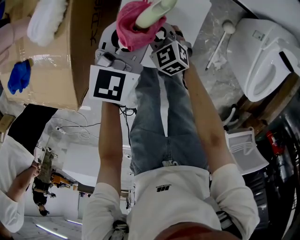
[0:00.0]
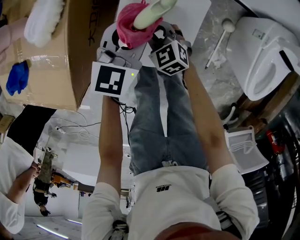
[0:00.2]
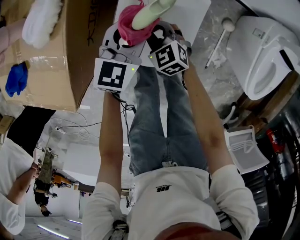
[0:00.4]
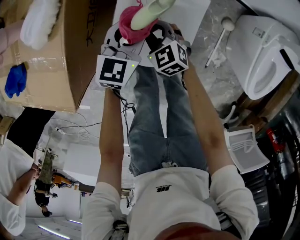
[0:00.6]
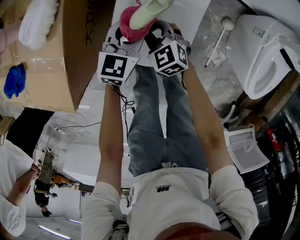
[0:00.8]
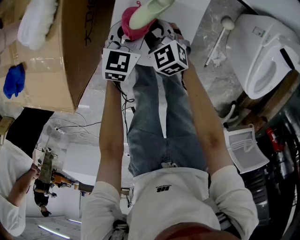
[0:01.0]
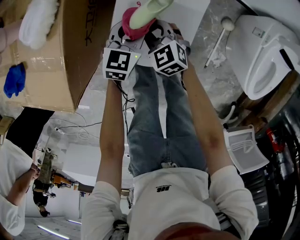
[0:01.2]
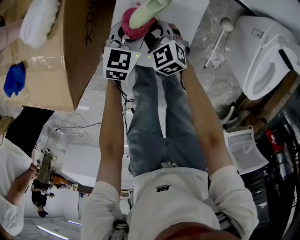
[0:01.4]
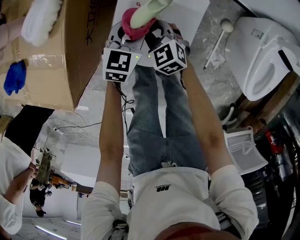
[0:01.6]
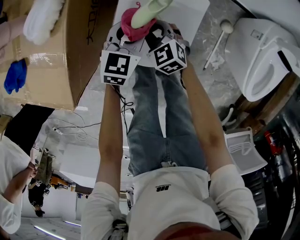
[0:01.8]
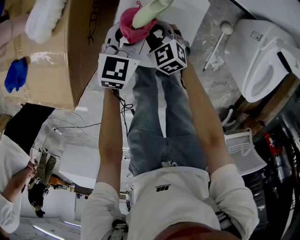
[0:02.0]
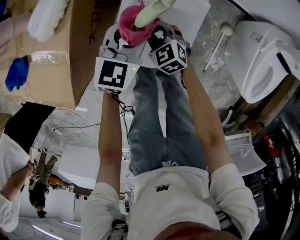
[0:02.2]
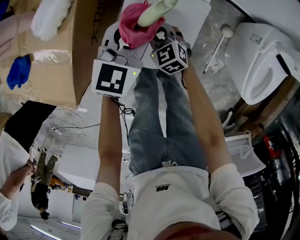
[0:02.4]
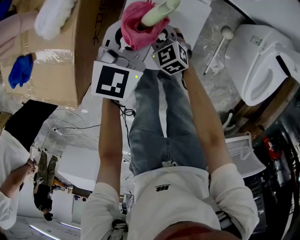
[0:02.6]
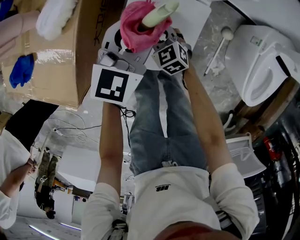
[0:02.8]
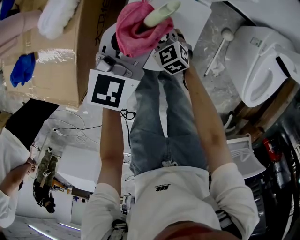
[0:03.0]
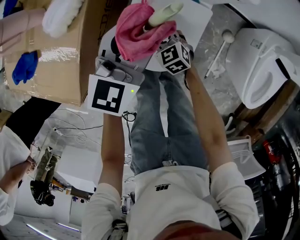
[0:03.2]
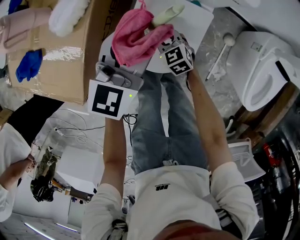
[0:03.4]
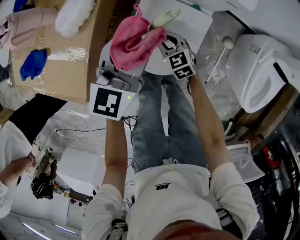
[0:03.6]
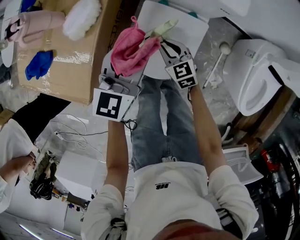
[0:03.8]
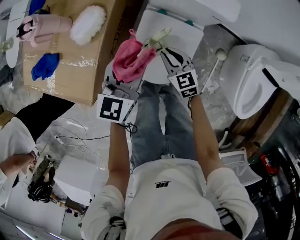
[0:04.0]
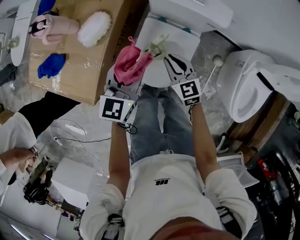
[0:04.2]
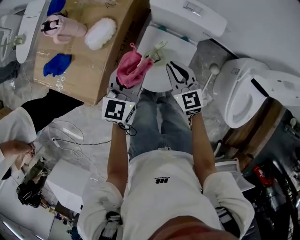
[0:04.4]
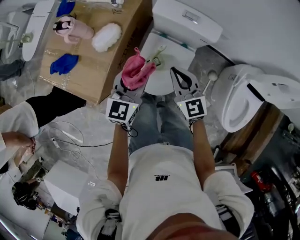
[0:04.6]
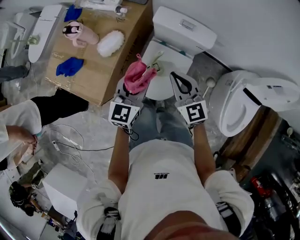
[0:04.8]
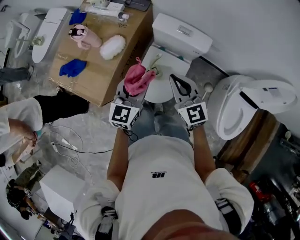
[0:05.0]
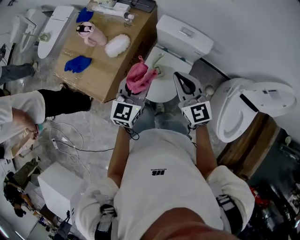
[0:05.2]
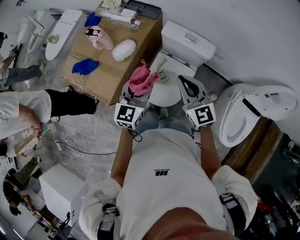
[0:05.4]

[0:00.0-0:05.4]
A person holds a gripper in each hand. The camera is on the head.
0:00.0 to 0:01.4: The left gripper shifts about 15 cm downward.
0:01.4 to 0:02.8: The left gripper heads upward, covering roughly 15 cm.
0:02.8 to 0:04.0: The left gripper heads upward and to the left, covering approximately 10 cm. The right gripper is displaced upward by approximately 15 cm.
0:04.0 to 0:05.4: The right gripper is displaced upward by approximately 35 cm, and changes its angle by some 30 degrees. Meanwhile the left gripper shifts approximately 20 cm upward.

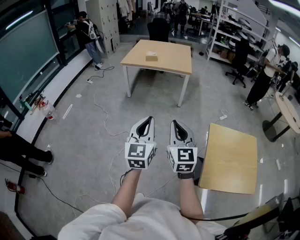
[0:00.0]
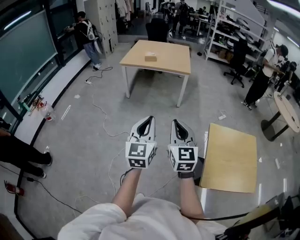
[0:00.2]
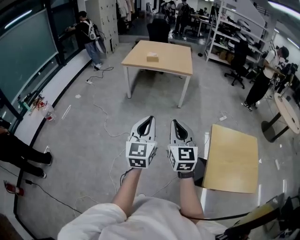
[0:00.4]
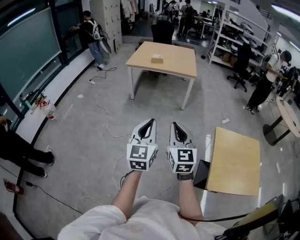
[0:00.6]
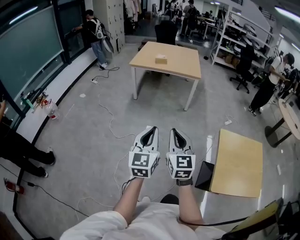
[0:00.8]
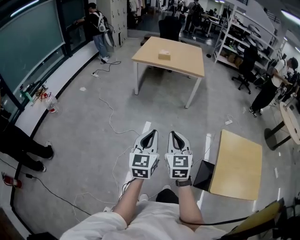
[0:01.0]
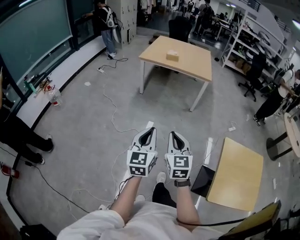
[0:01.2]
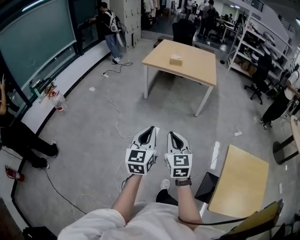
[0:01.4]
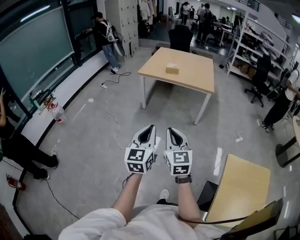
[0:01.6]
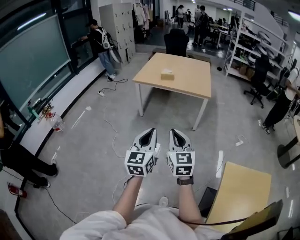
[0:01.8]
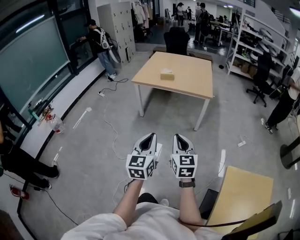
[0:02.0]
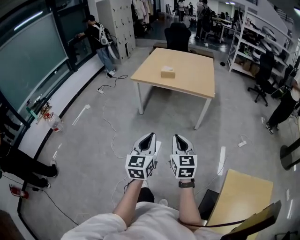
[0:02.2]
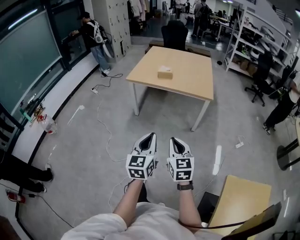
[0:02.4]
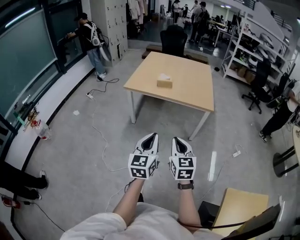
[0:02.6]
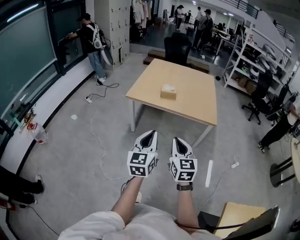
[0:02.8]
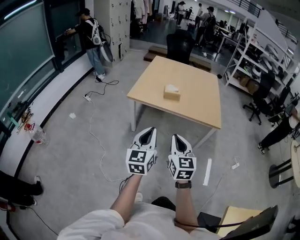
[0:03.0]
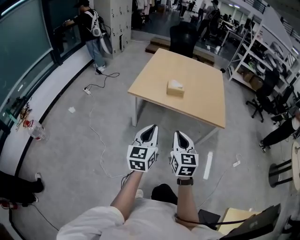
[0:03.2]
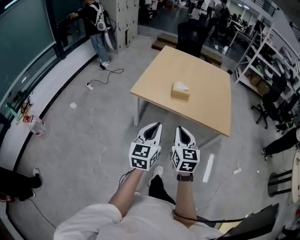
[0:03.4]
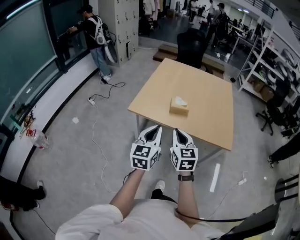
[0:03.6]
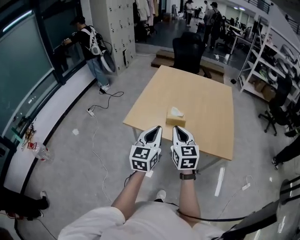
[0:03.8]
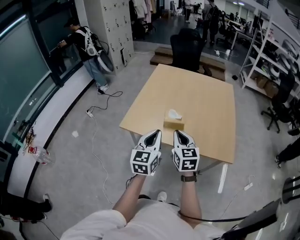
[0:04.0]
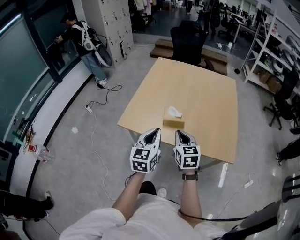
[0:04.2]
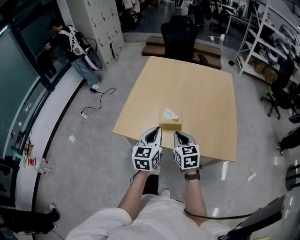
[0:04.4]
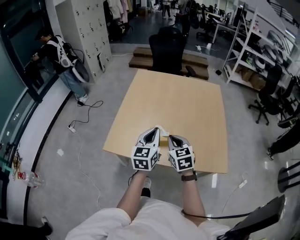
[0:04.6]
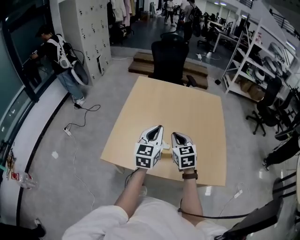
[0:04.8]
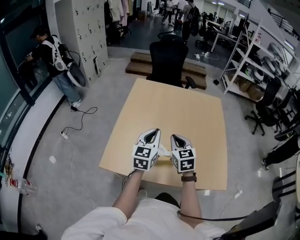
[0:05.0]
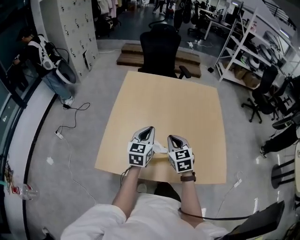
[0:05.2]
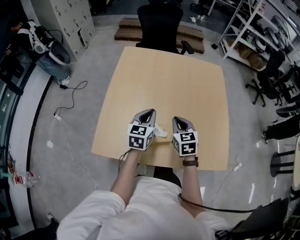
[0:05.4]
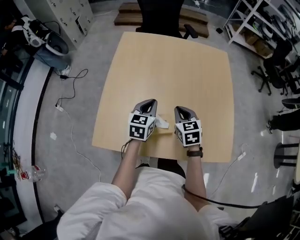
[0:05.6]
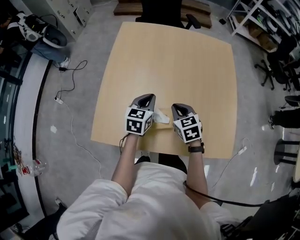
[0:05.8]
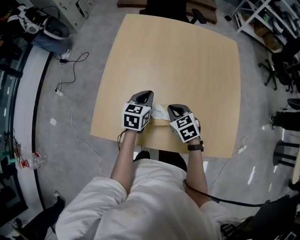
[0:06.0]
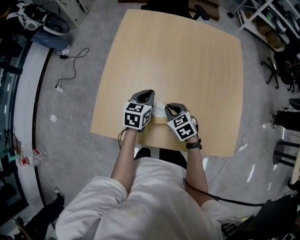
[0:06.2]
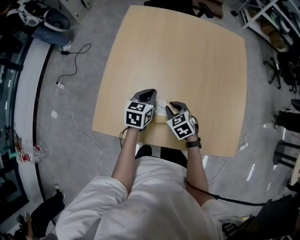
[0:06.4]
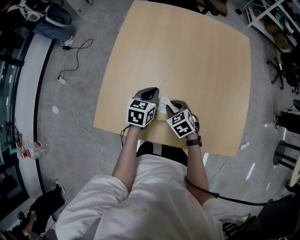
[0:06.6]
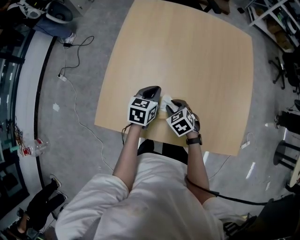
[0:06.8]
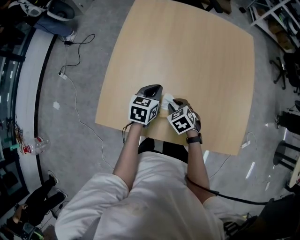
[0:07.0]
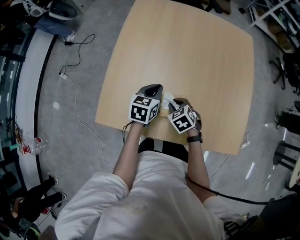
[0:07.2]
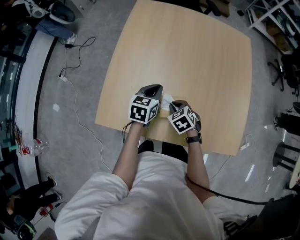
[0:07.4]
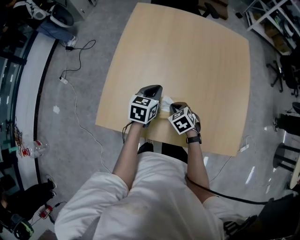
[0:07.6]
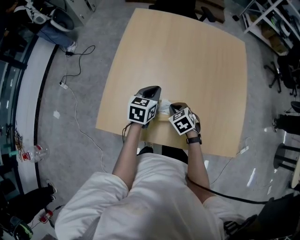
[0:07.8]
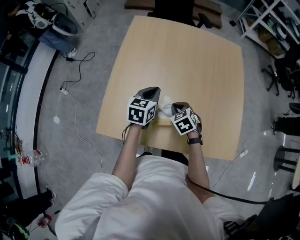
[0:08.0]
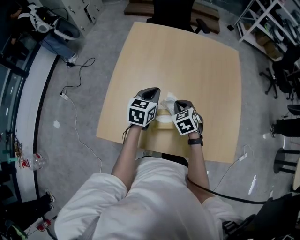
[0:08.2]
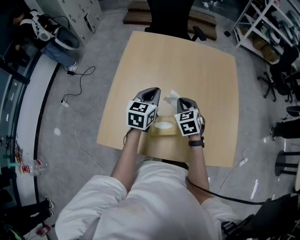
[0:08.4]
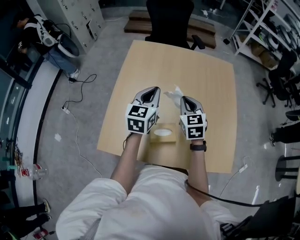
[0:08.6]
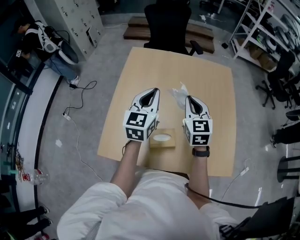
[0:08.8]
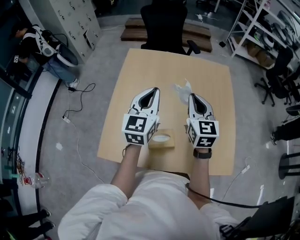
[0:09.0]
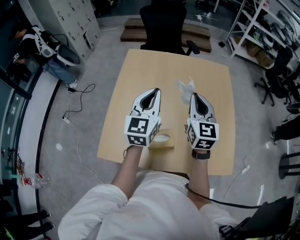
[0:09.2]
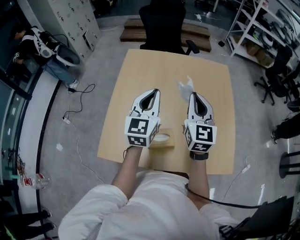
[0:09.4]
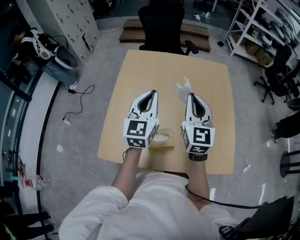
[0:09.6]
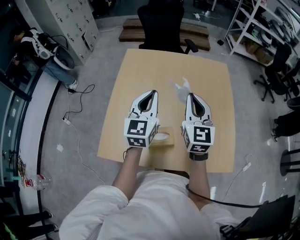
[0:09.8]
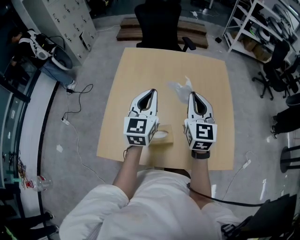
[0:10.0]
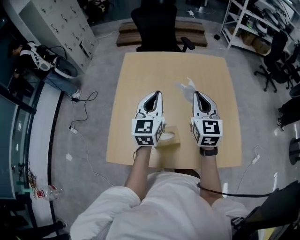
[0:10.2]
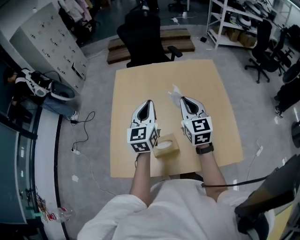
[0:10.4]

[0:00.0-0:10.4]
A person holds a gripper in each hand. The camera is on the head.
0:00.0 to 0:01.4: The grippers both shift to the left, forward and downward by some 20 cm.
0:01.4 to 0:03.0: The two grippers travel together, forward, approximately 60 cm.
0:03.0 to 0:04.4: The pair of grippers is taken forward, some 50 cm.
0:04.4 to 0:06.0: The two grippers go some 35 cm forward and downward. The right gripper changes its angle by roughly 20 degrees; the left gripper rotates some 20 degrees.
0:06.0 to 0:07.4: The right gripper shifts some 10 cm downward.
0:07.4 to 0:09.0: Both grippers move upward, approximately 30 cm. The left gripper rotates about 40 degrees. Meanwhile the right gripper points its fingers roughly 50 degrees further upward.
0:09.0 to 0:10.4: The grippers stay close to where they were, moving slightly.

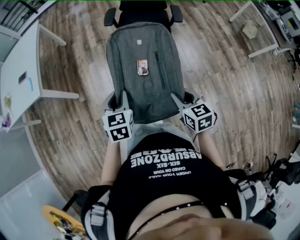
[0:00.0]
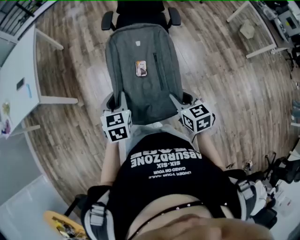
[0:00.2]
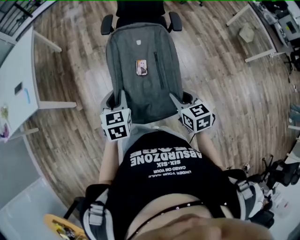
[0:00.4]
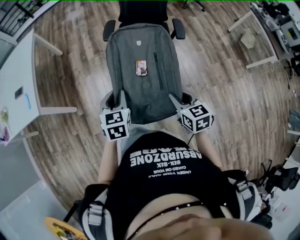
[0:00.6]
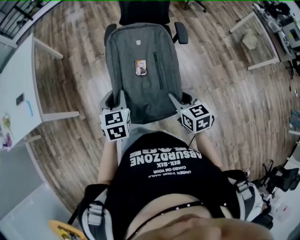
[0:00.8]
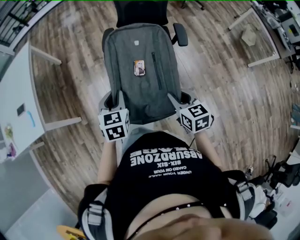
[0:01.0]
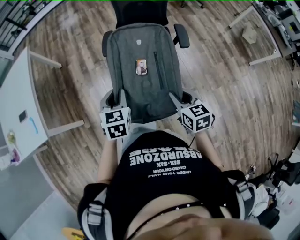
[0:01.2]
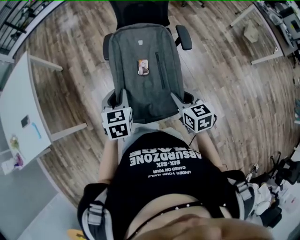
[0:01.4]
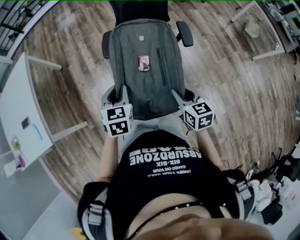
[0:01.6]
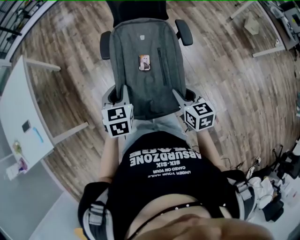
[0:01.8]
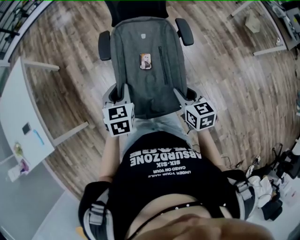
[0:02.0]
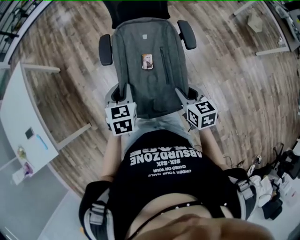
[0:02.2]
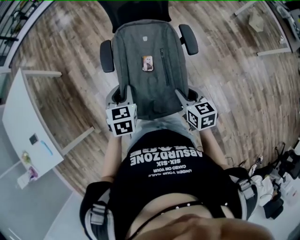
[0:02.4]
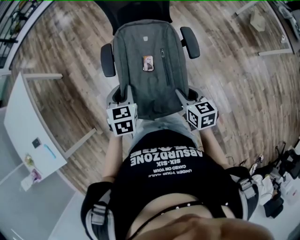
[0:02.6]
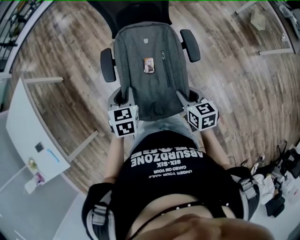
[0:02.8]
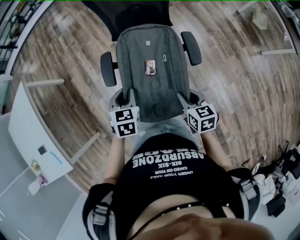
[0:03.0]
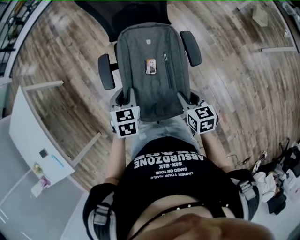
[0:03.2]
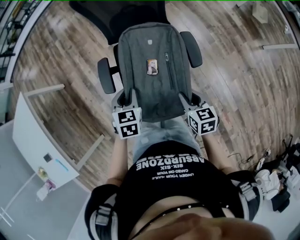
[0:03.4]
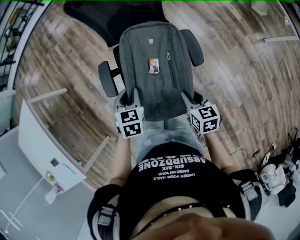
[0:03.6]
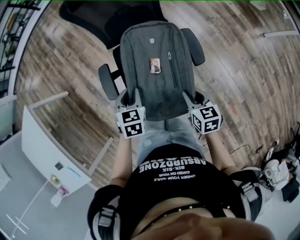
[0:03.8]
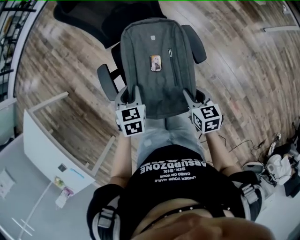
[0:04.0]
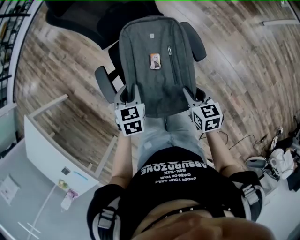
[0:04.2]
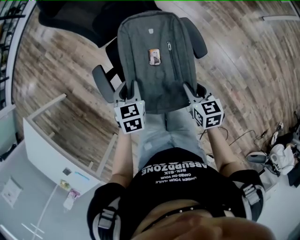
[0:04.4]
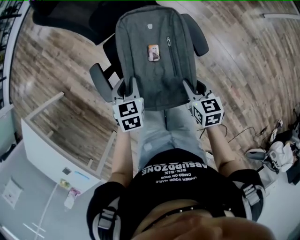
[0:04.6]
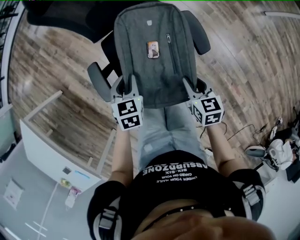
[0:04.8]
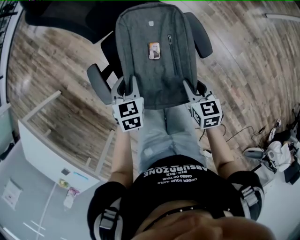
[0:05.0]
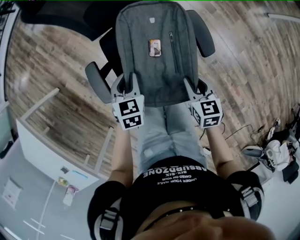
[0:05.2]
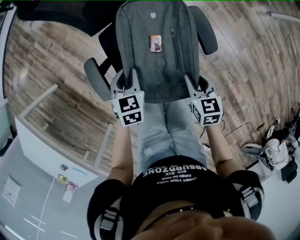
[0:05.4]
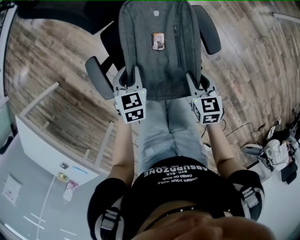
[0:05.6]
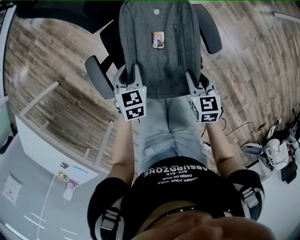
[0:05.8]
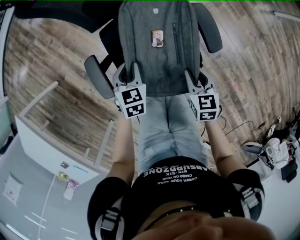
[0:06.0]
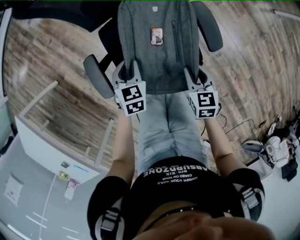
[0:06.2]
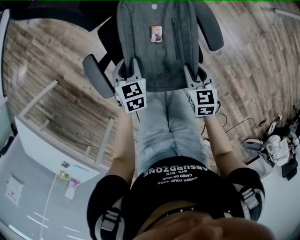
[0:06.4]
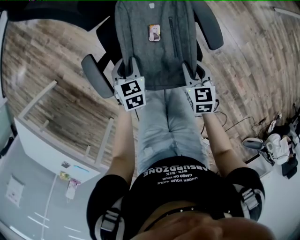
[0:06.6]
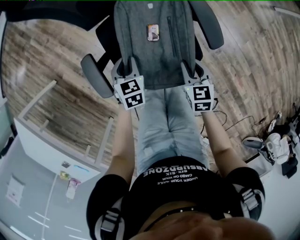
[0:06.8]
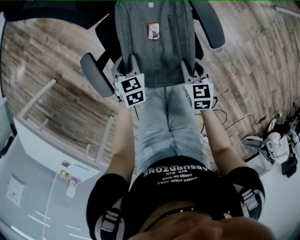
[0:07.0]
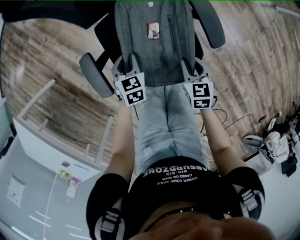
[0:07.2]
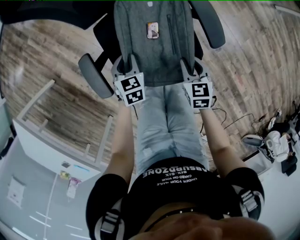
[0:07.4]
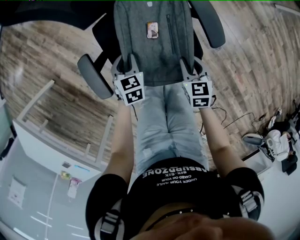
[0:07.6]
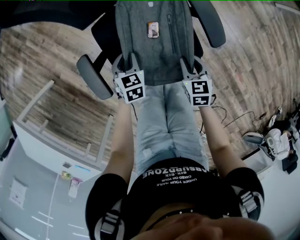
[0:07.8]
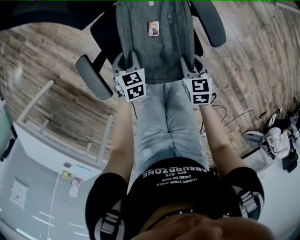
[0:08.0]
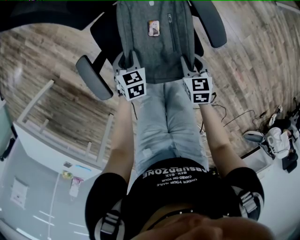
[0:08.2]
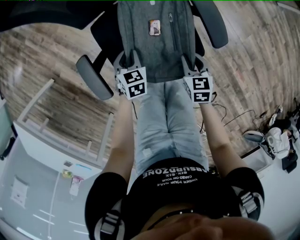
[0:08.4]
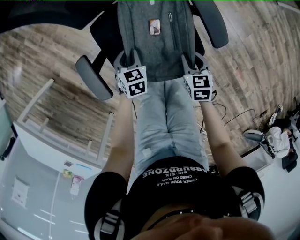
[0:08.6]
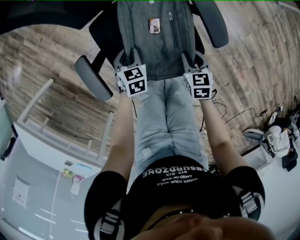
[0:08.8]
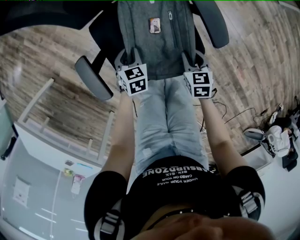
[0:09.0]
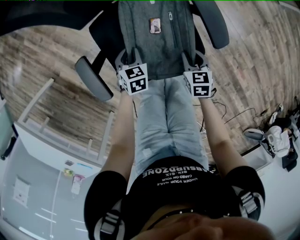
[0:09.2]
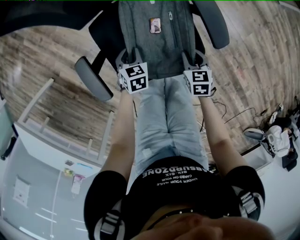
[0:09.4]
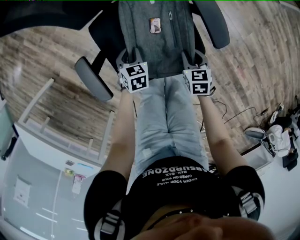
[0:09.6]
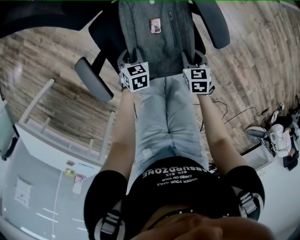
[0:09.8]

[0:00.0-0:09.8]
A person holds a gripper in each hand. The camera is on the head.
0:00.0 to 0:01.4: The grippers both shift forward by approximately 35 cm.
0:01.4 to 0:02.8: Both grippers move forward, about 20 cm.
0:02.8 to 0:04.2: The left gripper moves forward, downward and to the right, about 15 cm; the right gripper travels forward and downward by approximately 10 cm.
0:04.2 to 0:05.6: Both grippers travel together downward and forward, about 10 cm.
0:05.6 to 0:07.0: Both grippers move downward, approximately 5 cm.
0:07.0 to 0:08.4: The two grippers go approximately 5 cm downward.
0:08.4 to 0:09.8: Both grippers move downward, approximately 5 cm.
